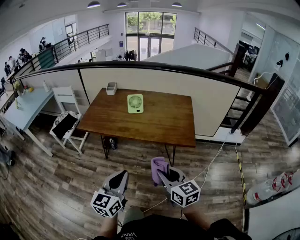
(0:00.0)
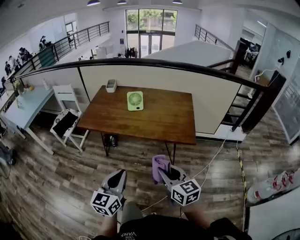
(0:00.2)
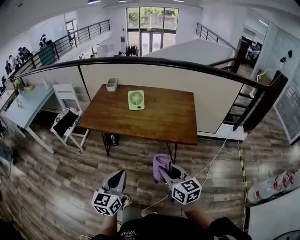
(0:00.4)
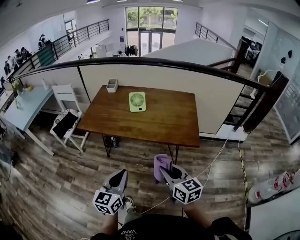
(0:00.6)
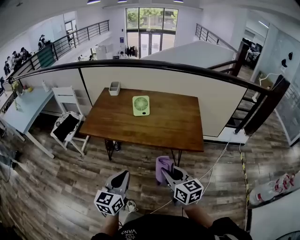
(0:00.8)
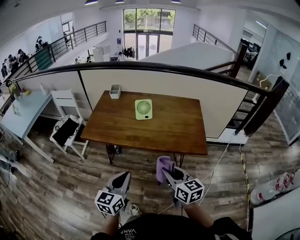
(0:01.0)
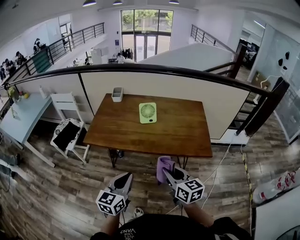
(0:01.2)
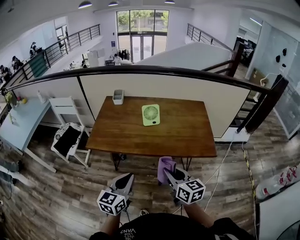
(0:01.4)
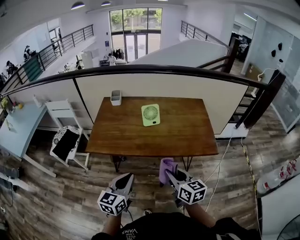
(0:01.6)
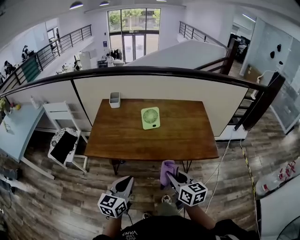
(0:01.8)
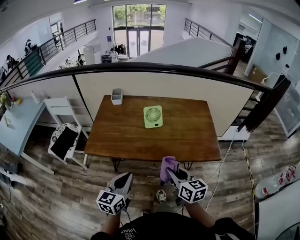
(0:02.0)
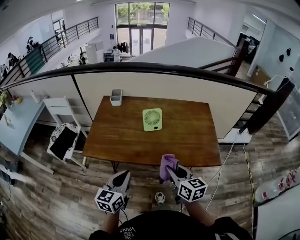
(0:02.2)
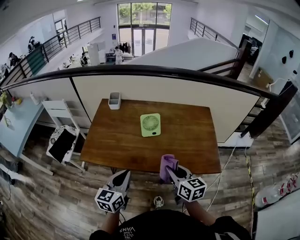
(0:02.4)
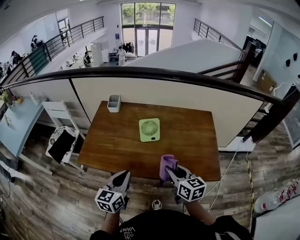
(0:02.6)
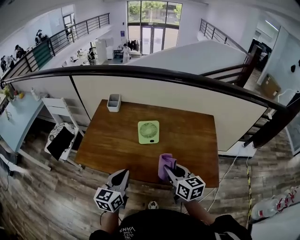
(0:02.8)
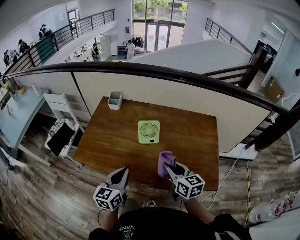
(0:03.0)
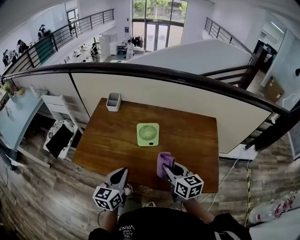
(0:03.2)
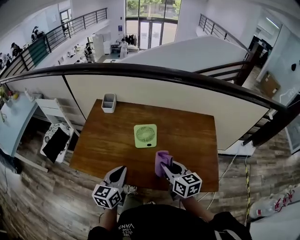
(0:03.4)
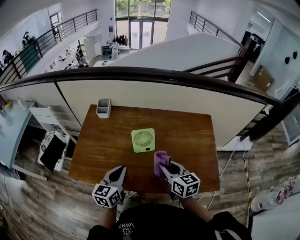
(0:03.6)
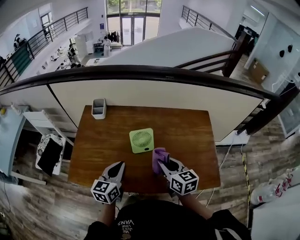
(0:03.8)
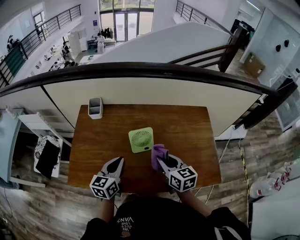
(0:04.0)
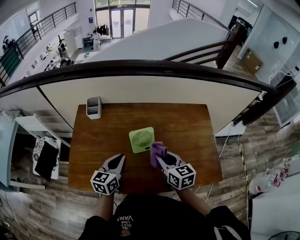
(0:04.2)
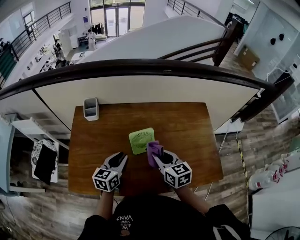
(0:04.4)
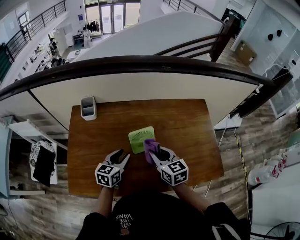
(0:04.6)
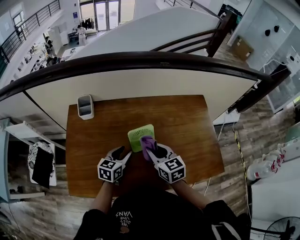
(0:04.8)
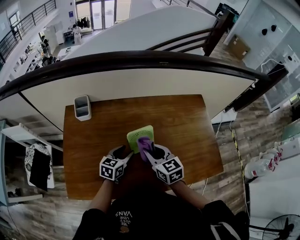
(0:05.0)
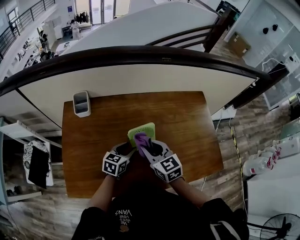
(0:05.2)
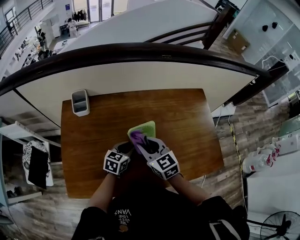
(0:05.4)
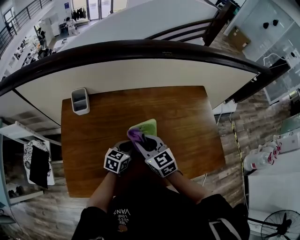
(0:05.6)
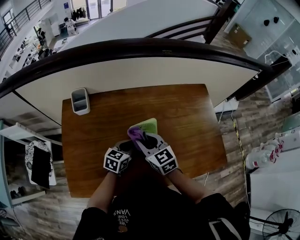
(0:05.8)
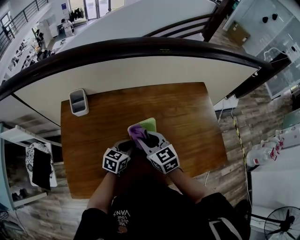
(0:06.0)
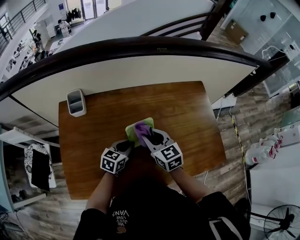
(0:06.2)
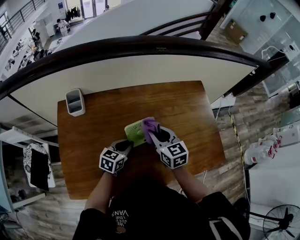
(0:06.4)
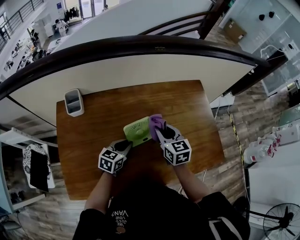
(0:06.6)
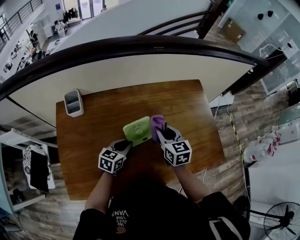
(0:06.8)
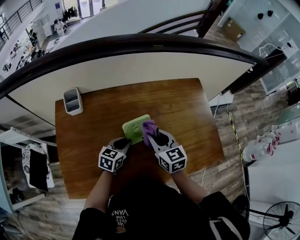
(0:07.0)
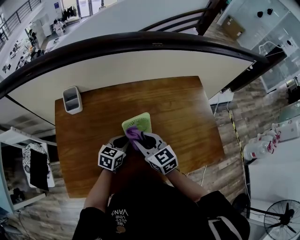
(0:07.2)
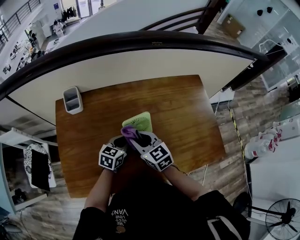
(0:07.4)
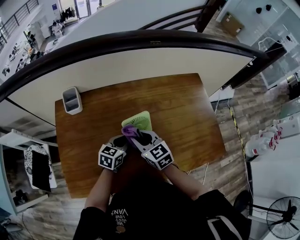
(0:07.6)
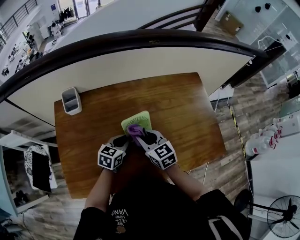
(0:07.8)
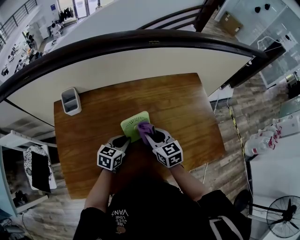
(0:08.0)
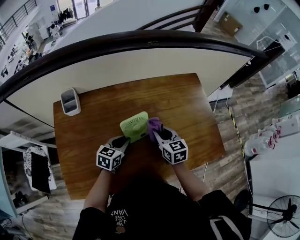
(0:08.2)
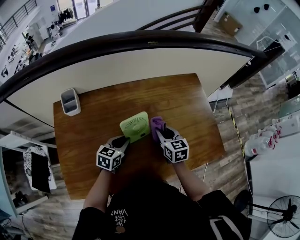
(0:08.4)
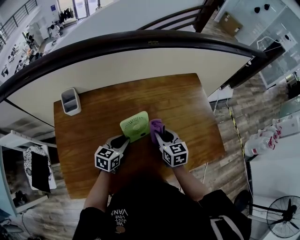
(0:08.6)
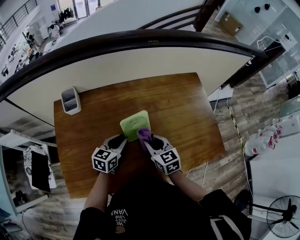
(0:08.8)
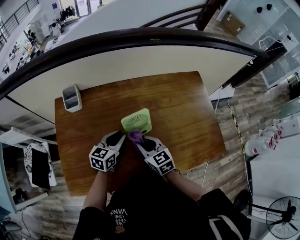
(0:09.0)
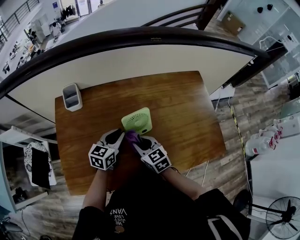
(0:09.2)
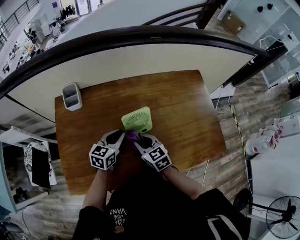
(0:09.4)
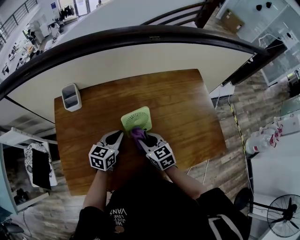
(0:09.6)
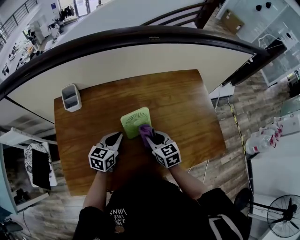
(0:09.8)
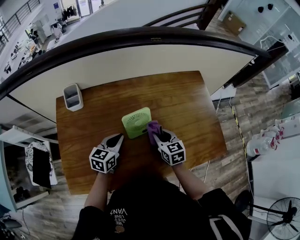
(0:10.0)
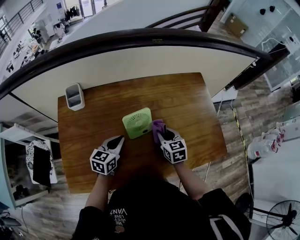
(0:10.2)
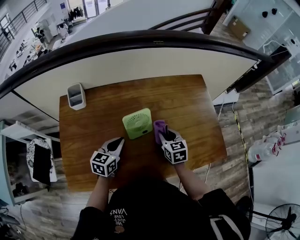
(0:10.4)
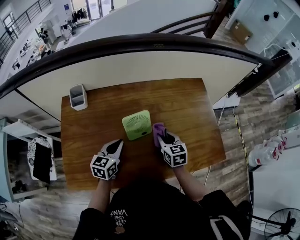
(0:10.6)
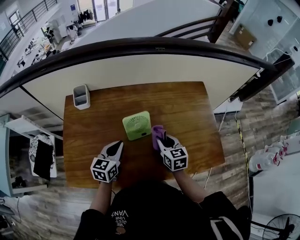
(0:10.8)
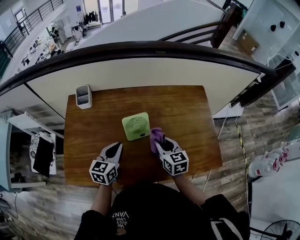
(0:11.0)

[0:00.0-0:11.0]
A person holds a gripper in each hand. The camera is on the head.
0:00.0 to 0:01.6: The two grippers go approximately 25 cm forward and to the left.
0:01.6 to 0:03.2: Both grippers travel together forward, approximately 25 cm.
0:03.2 to 0:04.8: The left gripper goes approximately 25 cm forward and downward, changes its angle by roughly 30 degrees, and opens its fingers. Meanwhile the right gripper goes some 15 cm forward and to the left.
0:04.8 to 0:06.2: The right gripper shifts by approximately 5 cm; the left gripper changes place by about 5 cm, and closes its fingers.
0:06.2 to 0:07.8: The right gripper travels to the right and back again, some 10 cm each way.
0:07.8 to 0:09.4: The right gripper travels to the right and back again, some 10 cm each way.
0:09.4 to 0:11.0: The left gripper heads backward and upward, covering approximately 10 cm; the right gripper is displaced to the right and upward by about 15 cm.

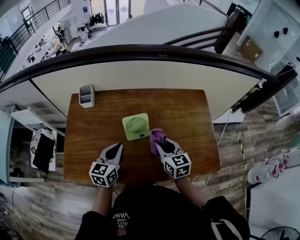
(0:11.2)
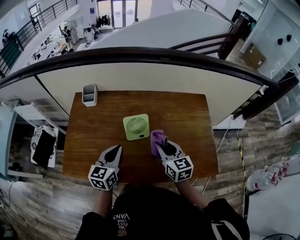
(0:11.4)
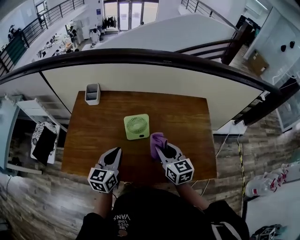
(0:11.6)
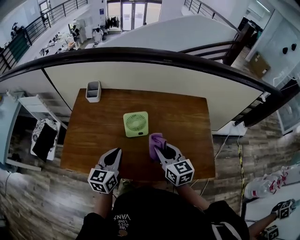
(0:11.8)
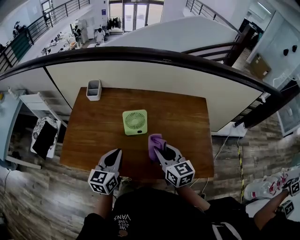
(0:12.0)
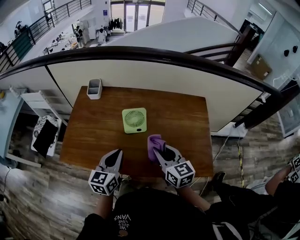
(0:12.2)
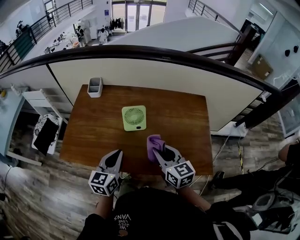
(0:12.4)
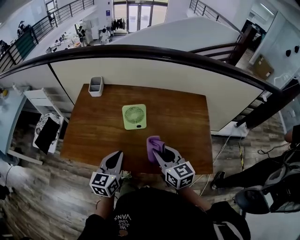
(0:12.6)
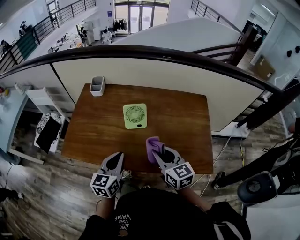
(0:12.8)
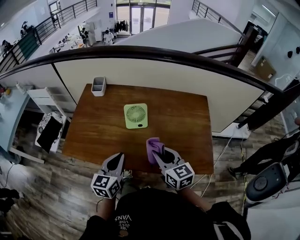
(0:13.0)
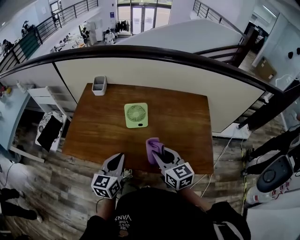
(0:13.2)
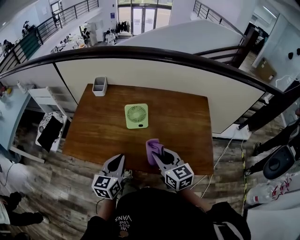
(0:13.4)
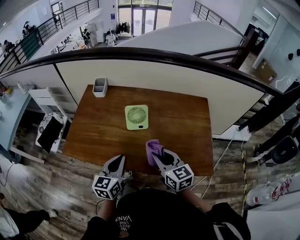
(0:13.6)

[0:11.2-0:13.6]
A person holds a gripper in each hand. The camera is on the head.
0:11.2 to 0:12.4: The left gripper shifts roughly 10 cm backward. Meanwhile the right gripper heads backward and upward, covering roughly 10 cm.
0:12.4 to 0:13.6: The grippers make only small movements.

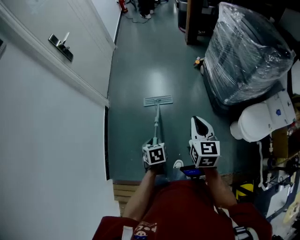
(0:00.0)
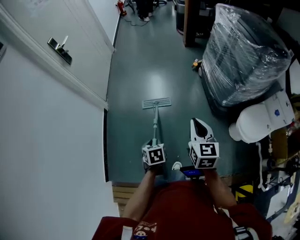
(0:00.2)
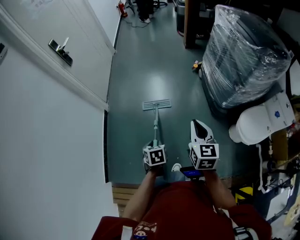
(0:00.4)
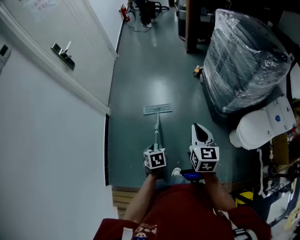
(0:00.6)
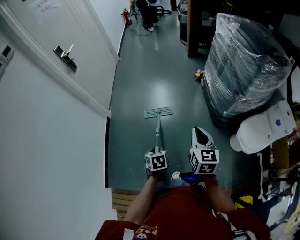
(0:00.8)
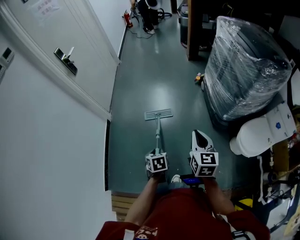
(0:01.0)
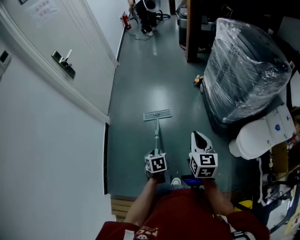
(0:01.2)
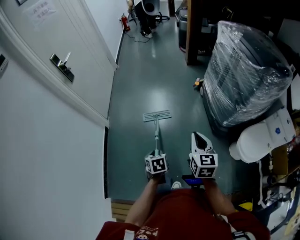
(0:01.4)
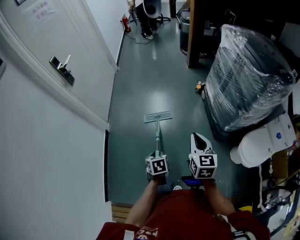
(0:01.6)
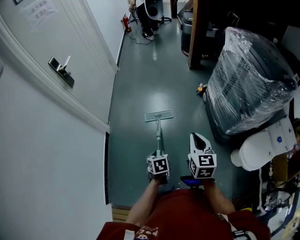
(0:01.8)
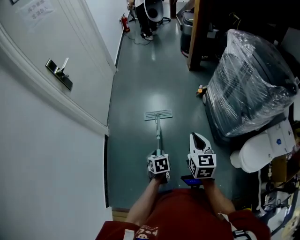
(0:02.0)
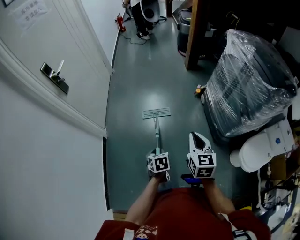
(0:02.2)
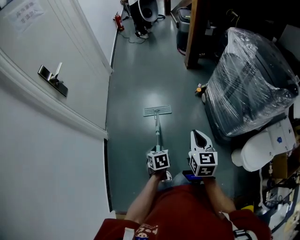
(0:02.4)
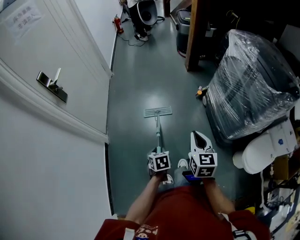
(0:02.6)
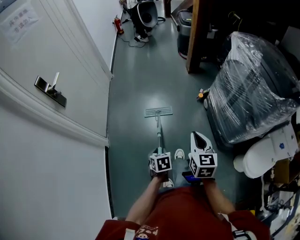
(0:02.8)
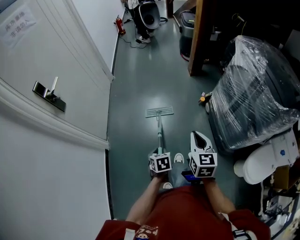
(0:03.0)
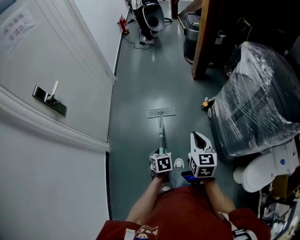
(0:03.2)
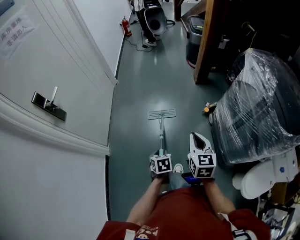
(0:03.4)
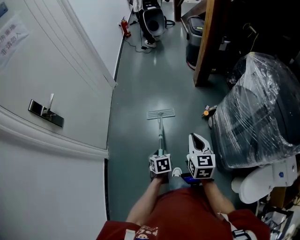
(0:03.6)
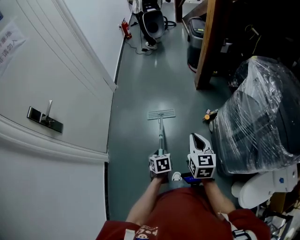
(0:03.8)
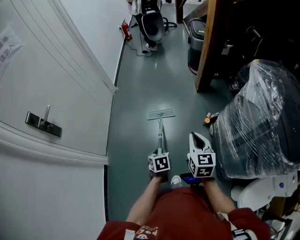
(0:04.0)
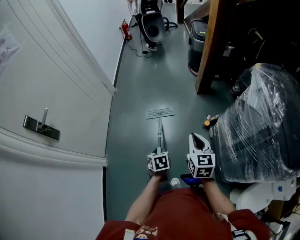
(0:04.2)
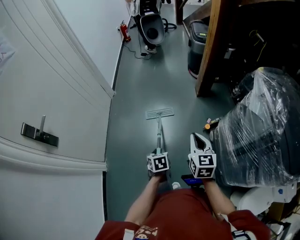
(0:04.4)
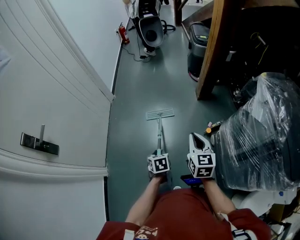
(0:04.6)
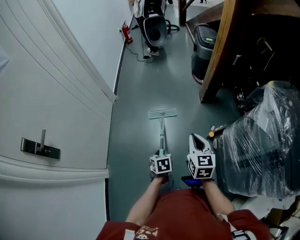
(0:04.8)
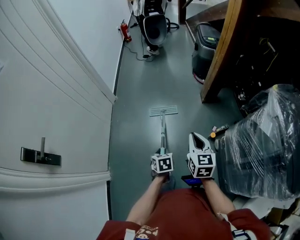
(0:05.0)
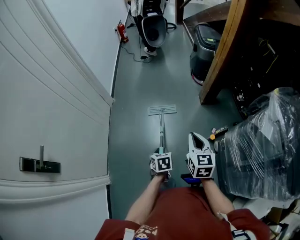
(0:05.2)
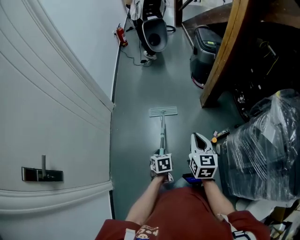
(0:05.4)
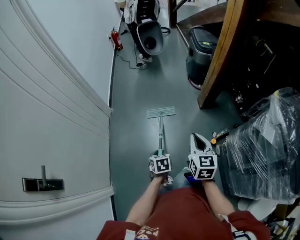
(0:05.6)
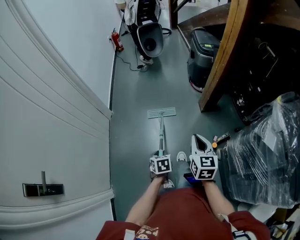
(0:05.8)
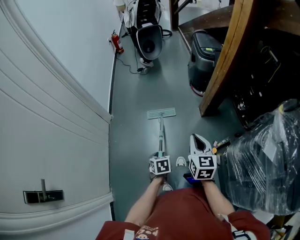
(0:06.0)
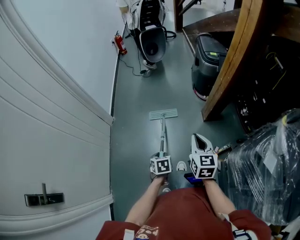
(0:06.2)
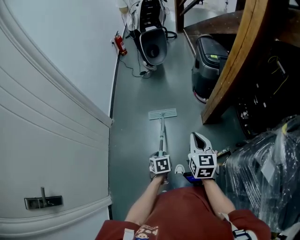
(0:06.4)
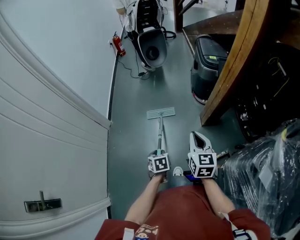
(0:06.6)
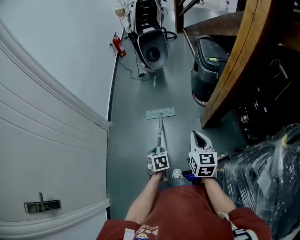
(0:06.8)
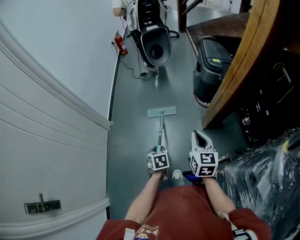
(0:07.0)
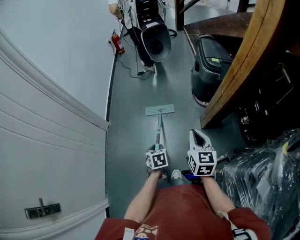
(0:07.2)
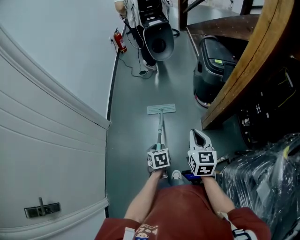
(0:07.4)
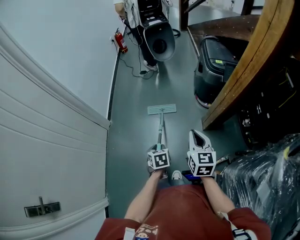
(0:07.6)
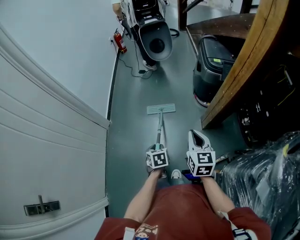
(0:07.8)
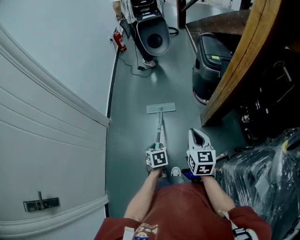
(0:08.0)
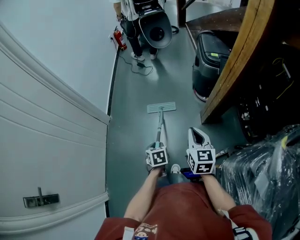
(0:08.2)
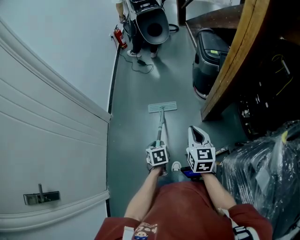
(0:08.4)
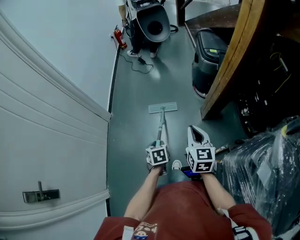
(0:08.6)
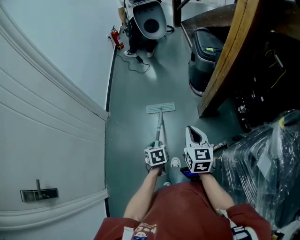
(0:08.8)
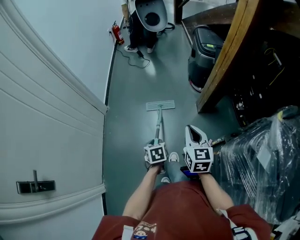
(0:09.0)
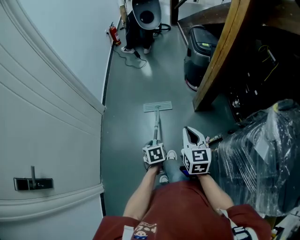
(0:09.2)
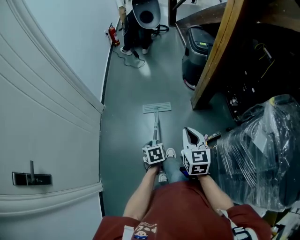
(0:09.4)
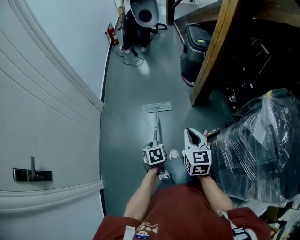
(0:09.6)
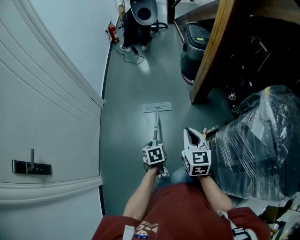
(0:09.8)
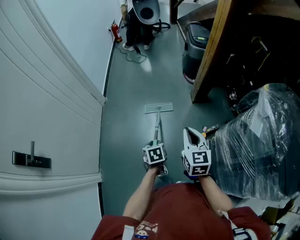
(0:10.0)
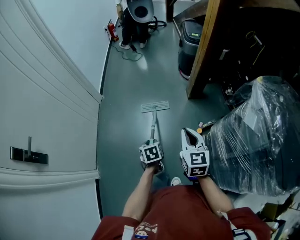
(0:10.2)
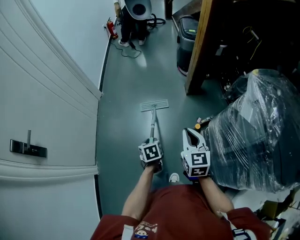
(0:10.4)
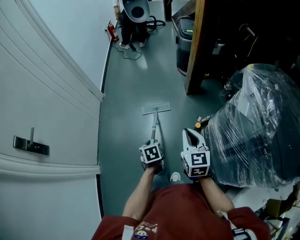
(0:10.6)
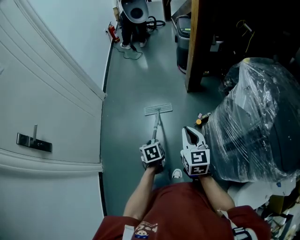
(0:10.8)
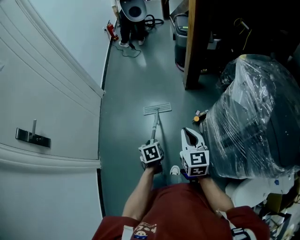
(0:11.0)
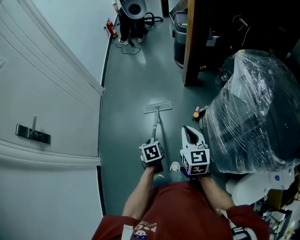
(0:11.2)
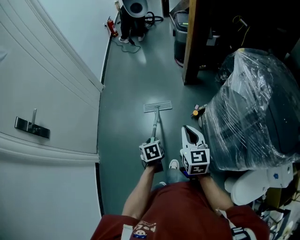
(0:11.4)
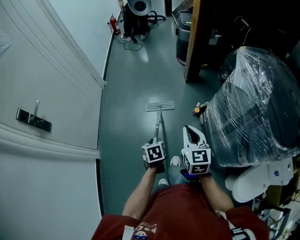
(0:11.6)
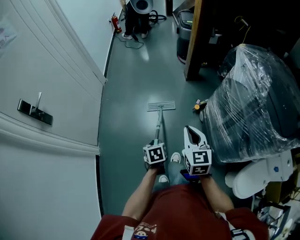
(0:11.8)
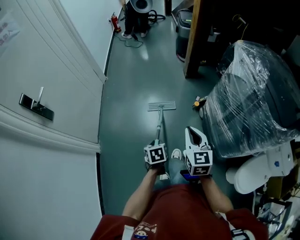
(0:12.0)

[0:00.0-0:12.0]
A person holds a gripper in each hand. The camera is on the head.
0:00.0 to 0:01.6: Both grippers move forward, approximately 10 cm.
0:01.6 to 0:03.0: The two grippers go approximately 30 cm forward.
0:03.0 to 0:04.4: The two grippers go about 35 cm forward.
0:04.4 to 0:06.0: Both grippers travel together forward, some 35 cm.
0:06.0 to 0:07.6: The grippers both shift forward by about 25 cm.
0:07.6 to 0:09.0: Both grippers move backward, approximately 20 cm.
0:09.0 to 0:10.4: The two grippers go approximately 30 cm backward.
0:10.4 to 0:12.0: The two grippers go about 35 cm backward.
